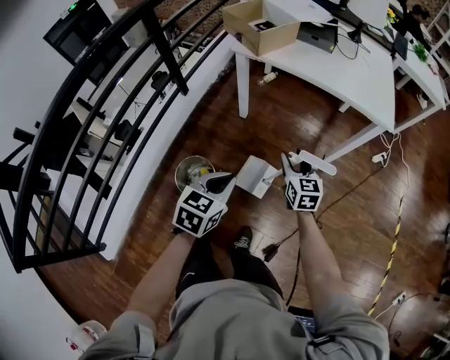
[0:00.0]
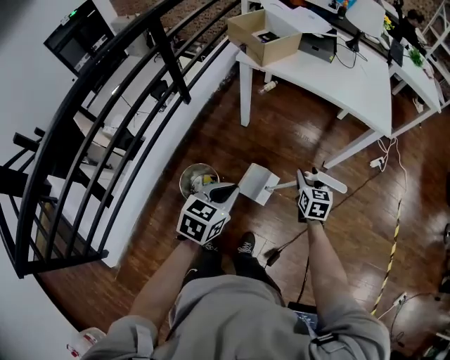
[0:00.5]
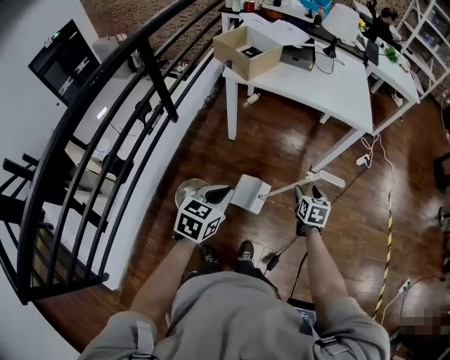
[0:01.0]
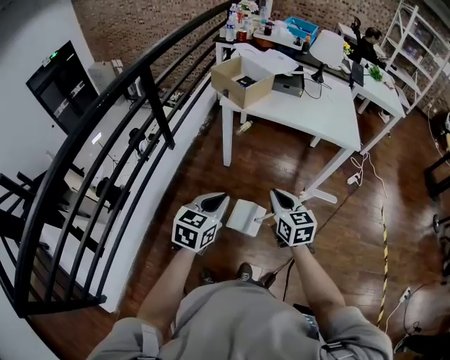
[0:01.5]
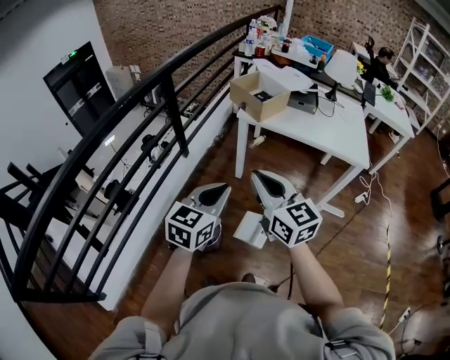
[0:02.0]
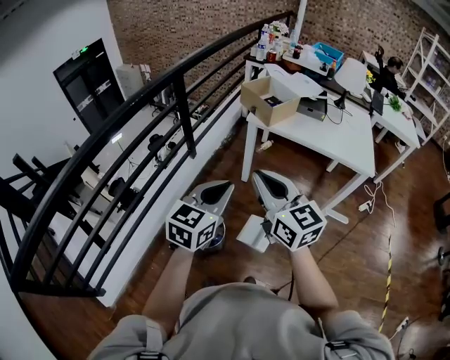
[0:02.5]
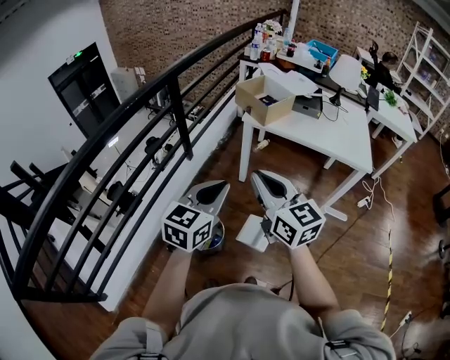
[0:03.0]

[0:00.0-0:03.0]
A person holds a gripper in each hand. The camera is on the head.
0:00.0 to 0:01.5: The right gripper heads upward, backward and to the left, covering approximately 20 cm, and closes its fingers, while the left gripper shifts some 10 cm upward and to the left.
0:01.5 to 0:03.0: The right gripper is displaced upward and to the left by about 25 cm, and rotates about 30 degrees, while the left gripper moves upward and to the left, about 15 cm.

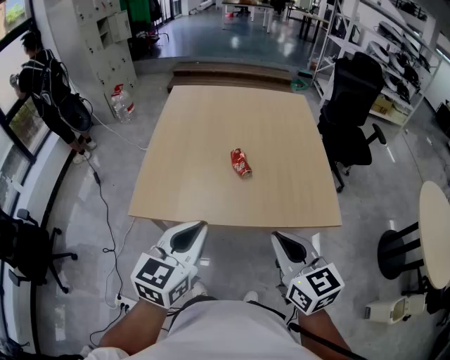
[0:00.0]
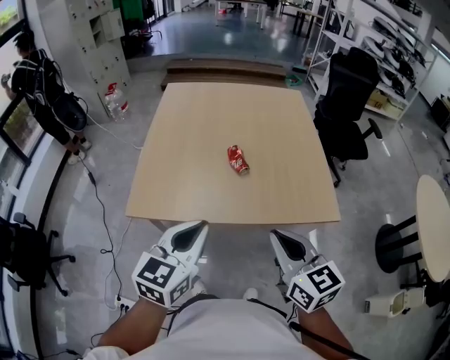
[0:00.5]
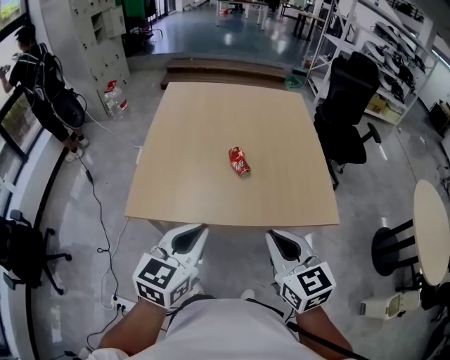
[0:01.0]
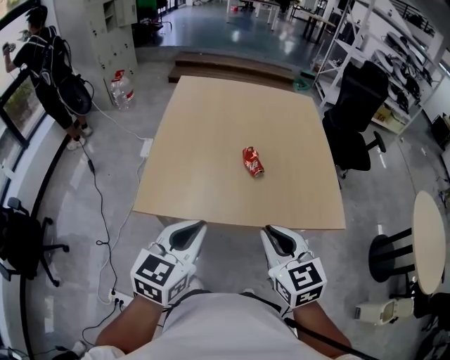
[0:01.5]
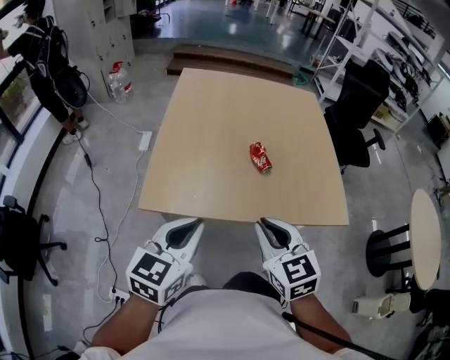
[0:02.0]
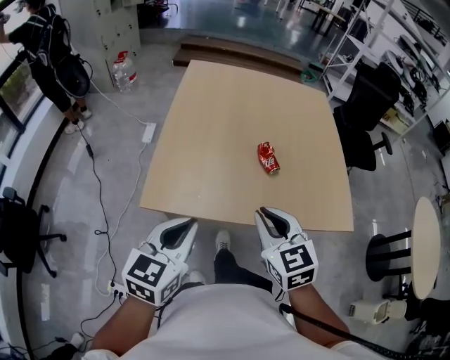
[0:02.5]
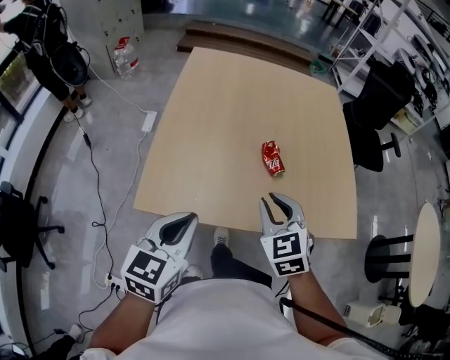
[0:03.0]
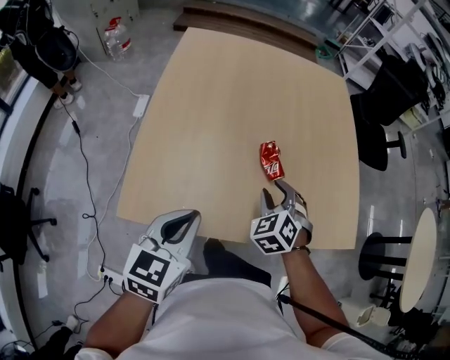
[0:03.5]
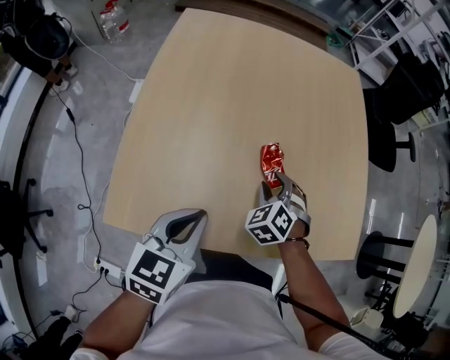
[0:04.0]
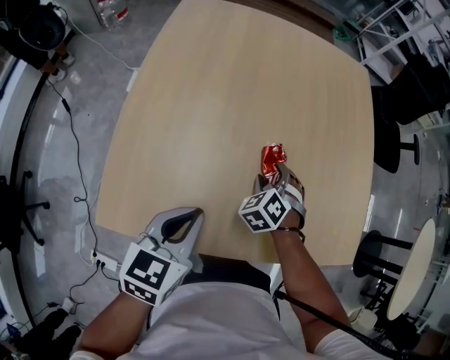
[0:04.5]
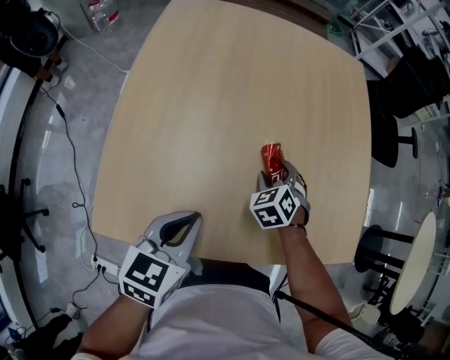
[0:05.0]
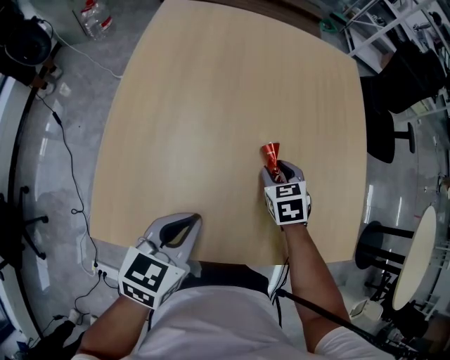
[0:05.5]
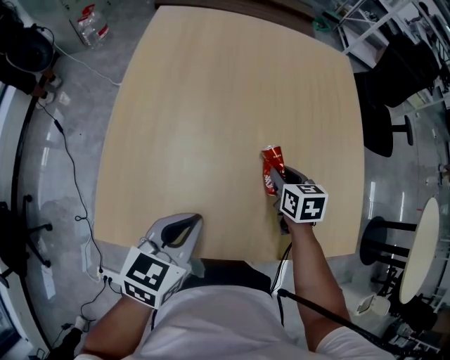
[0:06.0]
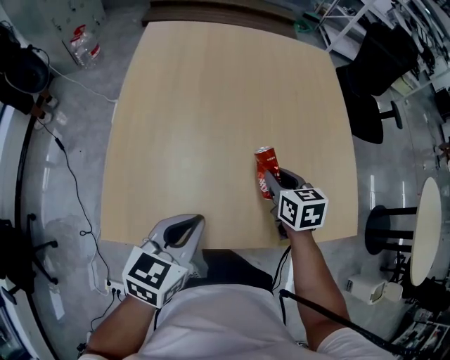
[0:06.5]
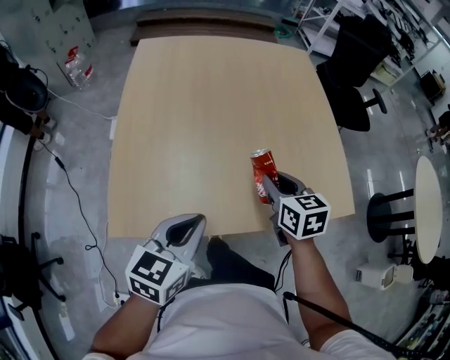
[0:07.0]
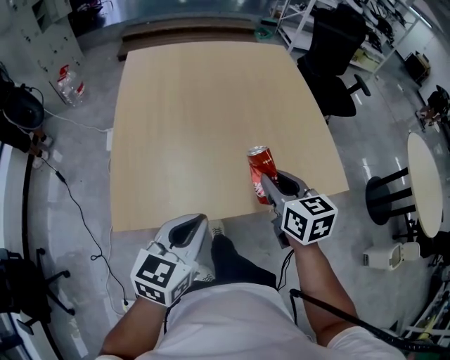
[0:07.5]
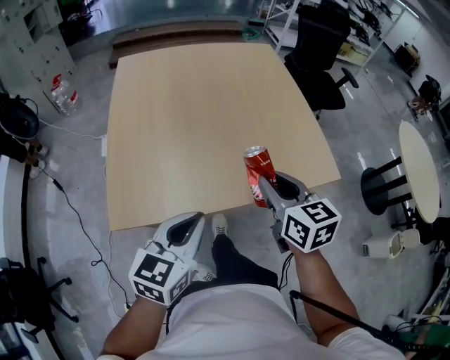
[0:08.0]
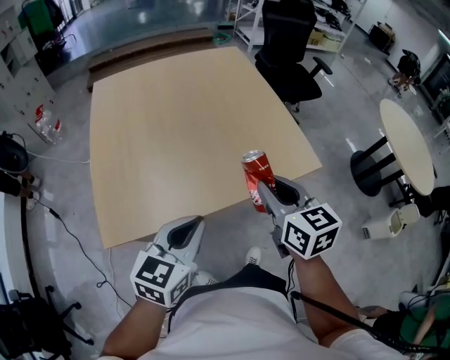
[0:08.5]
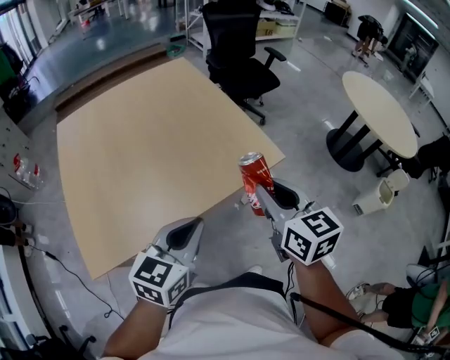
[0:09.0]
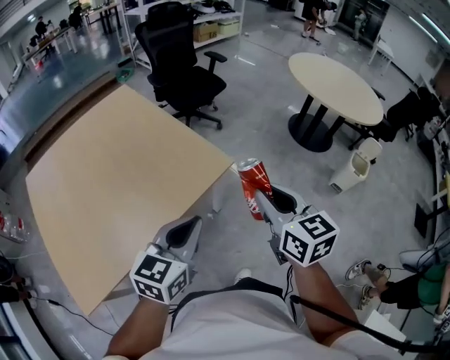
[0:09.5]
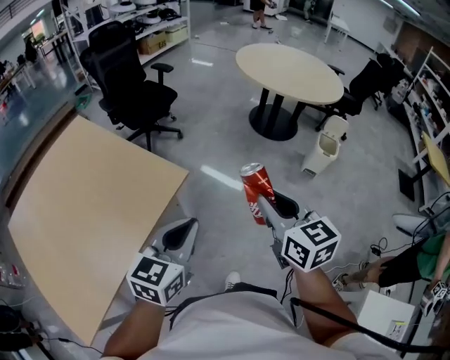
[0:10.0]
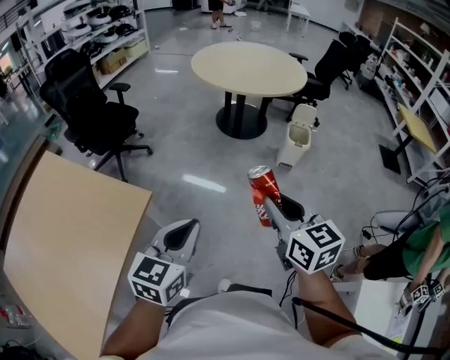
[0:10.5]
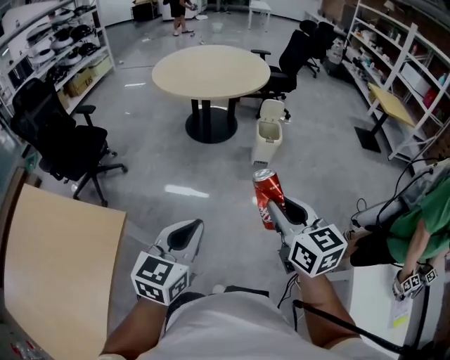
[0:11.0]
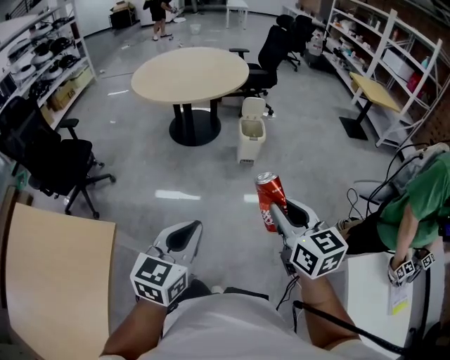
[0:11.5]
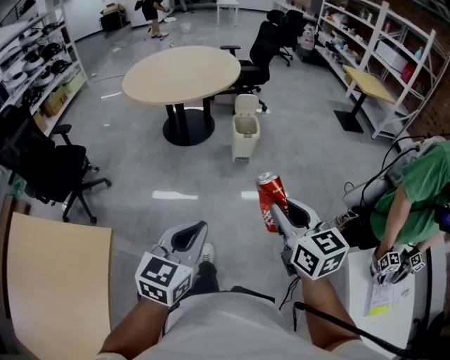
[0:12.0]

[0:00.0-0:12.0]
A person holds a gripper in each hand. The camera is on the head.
0:00.0 to 0:02.0: Both grippers travel together to the left, some 10 cm.
0:02.0 to 0:04.0: The left gripper moves forward and downward, about 20 cm. Meanwhile the right gripper goes roughly 35 cm forward and downward, swivels approximately 50 degrees, and opens up.
0:04.0 to 0:06.0: The right gripper goes approximately 5 cm forward, and twists about 50 degrees clockwise, seen from behind.
0:06.0 to 0:08.0: The right gripper shifts some 30 cm backward and upward, and changes its angle by about 20 degrees, while the left gripper is displaced backward and upward by roughly 15 cm.
0:08.0 to 0:10.0: The right gripper moves approximately 40 cm, and changes its angle by some 50 degrees; the left gripper moves about 40 cm, and swivels about 50 degrees.
0:10.0 to 0:12.0: The left gripper moves about 25 cm, and swivels some 30 degrees, while the right gripper ends up some 25 cm from where it was, and changes its angle by about 30 degrees.

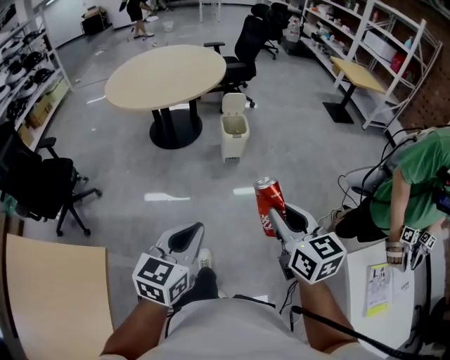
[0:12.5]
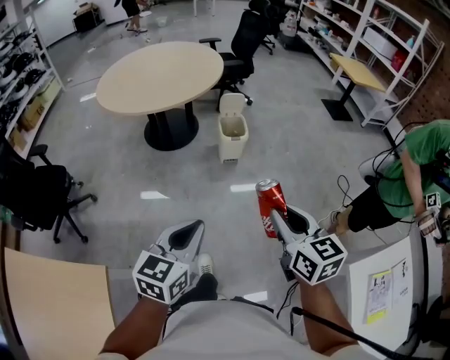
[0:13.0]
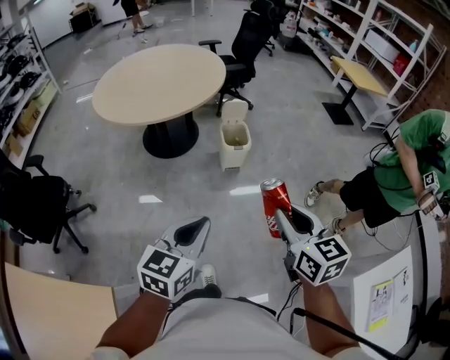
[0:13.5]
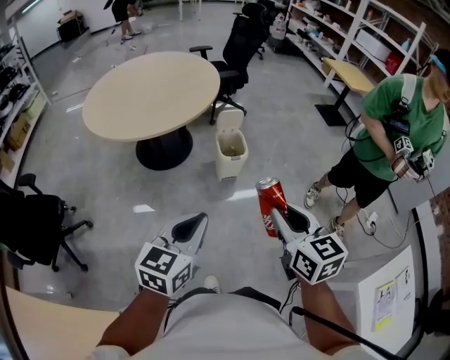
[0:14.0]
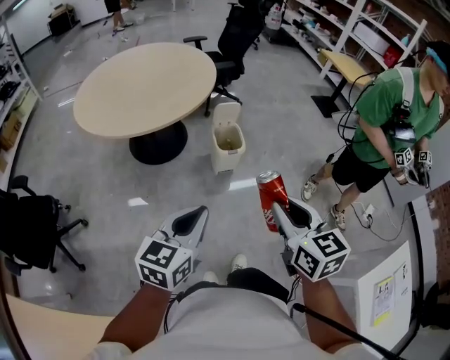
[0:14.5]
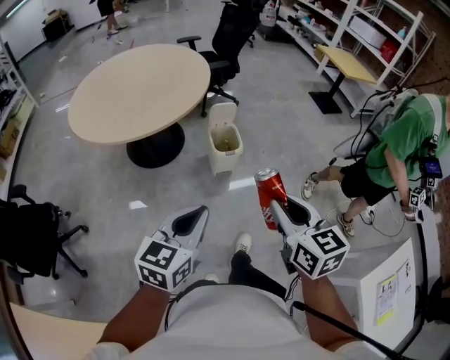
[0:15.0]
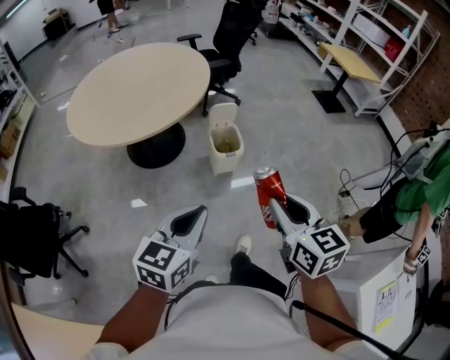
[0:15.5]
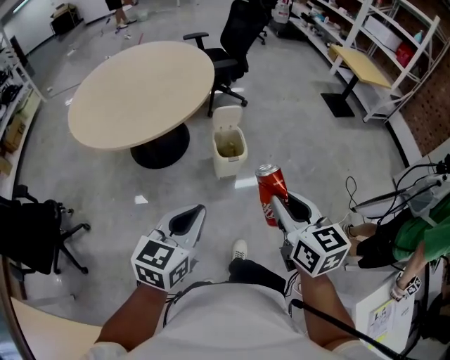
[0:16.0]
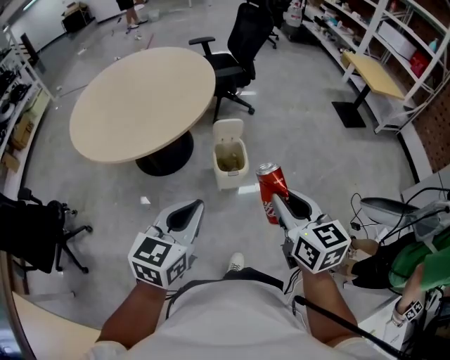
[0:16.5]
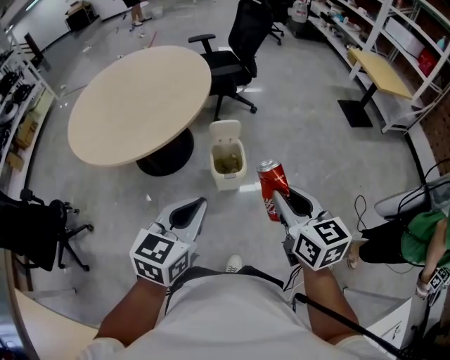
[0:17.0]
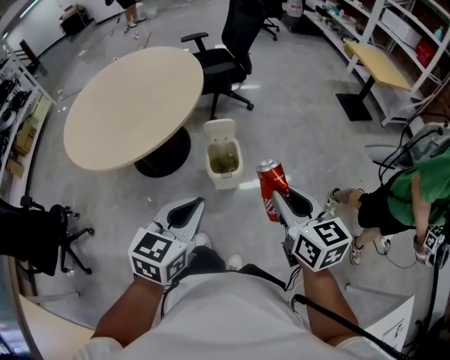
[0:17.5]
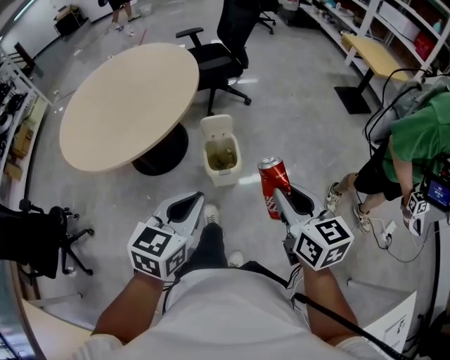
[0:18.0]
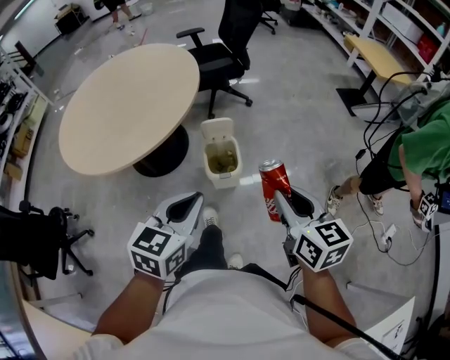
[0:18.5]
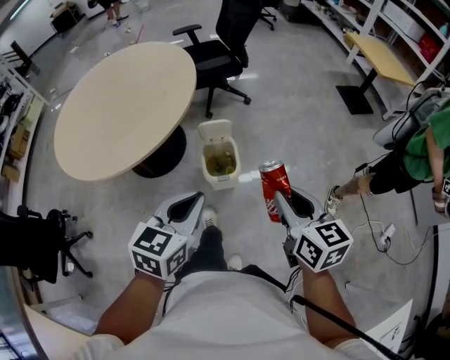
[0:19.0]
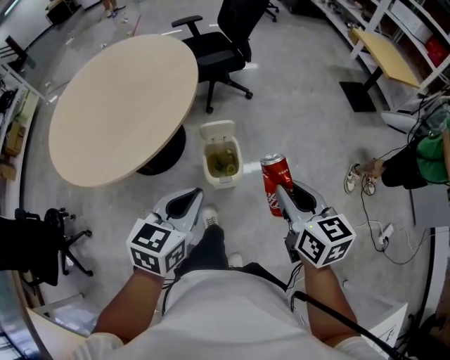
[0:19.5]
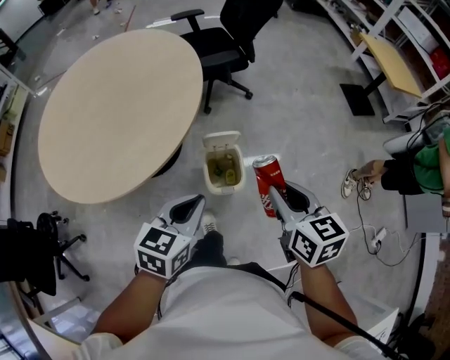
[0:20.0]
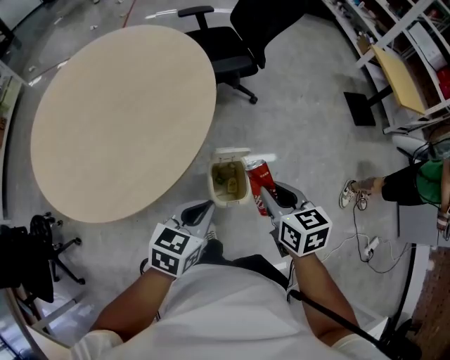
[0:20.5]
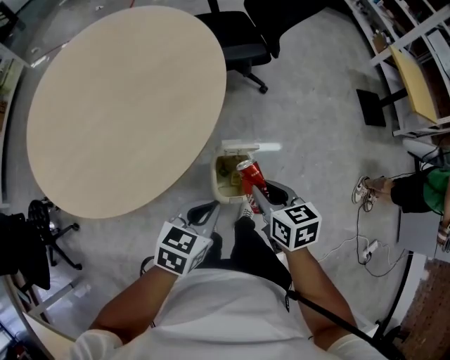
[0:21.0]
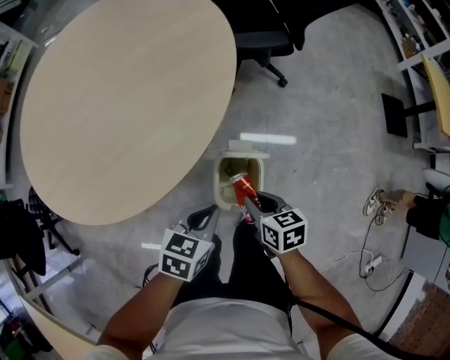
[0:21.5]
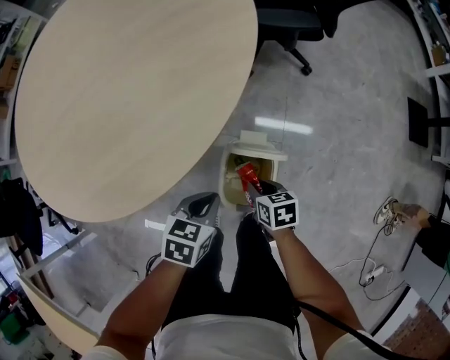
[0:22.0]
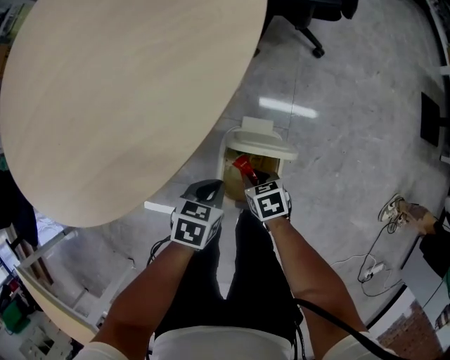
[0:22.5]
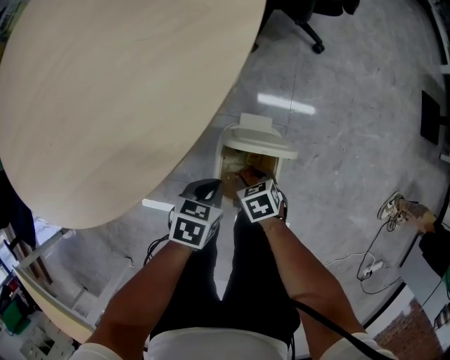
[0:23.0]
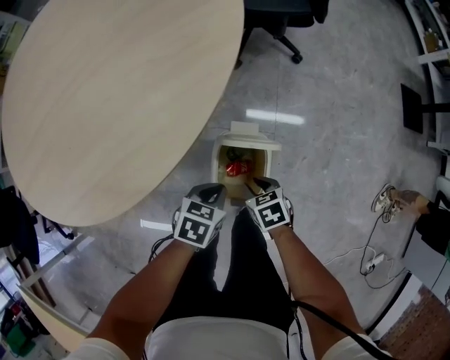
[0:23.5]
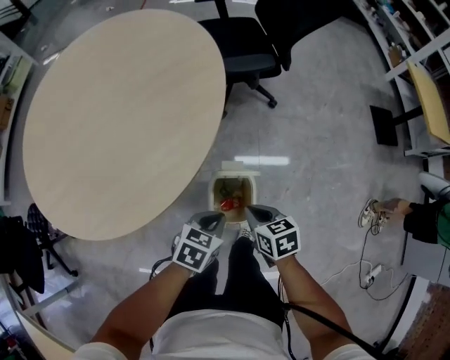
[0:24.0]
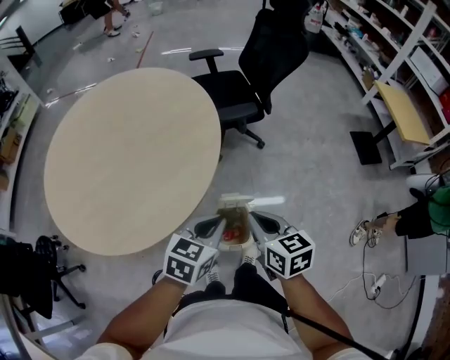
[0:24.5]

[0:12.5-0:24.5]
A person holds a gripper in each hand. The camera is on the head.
0:12.5 to 0:14.5: The two grippers go about 20 cm forward.
0:14.5 to 0:16.5: The grippers both shift forward by about 20 cm.
0:16.5 to 0:18.5: Both grippers travel together forward and to the right, roughly 10 cm.
0:18.5 to 0:20.5: The left gripper travels forward and downward by roughly 20 cm, while the right gripper heads forward and to the left, covering some 25 cm.
0:20.5 to 0:22.5: Both grippers travel together downward, roughly 35 cm. The right gripper swivels about 40 degrees. Meanwhile the left gripper turns by about 30 degrees.
0:22.5 to 0:24.5: The grippers both shift upward by approximately 35 cm. The right gripper tips its fingers upward by about 30 degrees, and closes; the left gripper rotates approximately 30 degrees.
